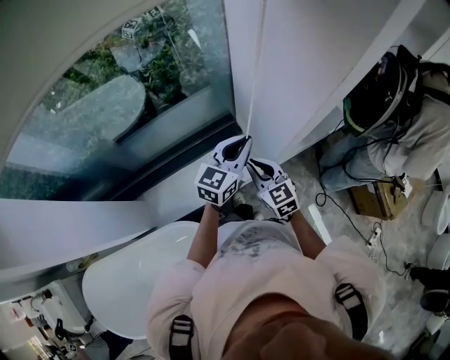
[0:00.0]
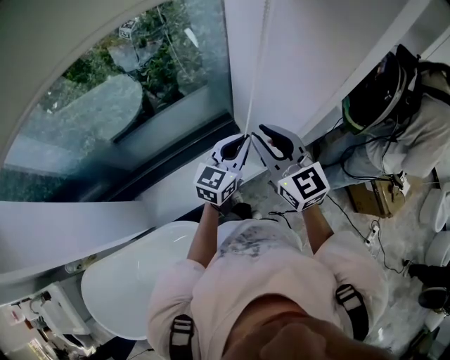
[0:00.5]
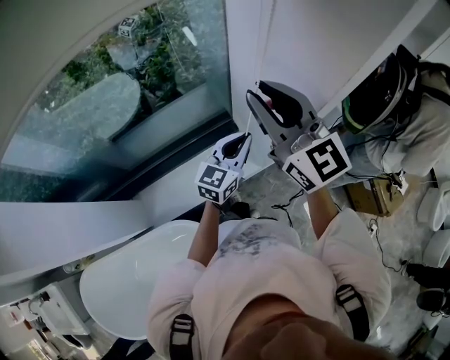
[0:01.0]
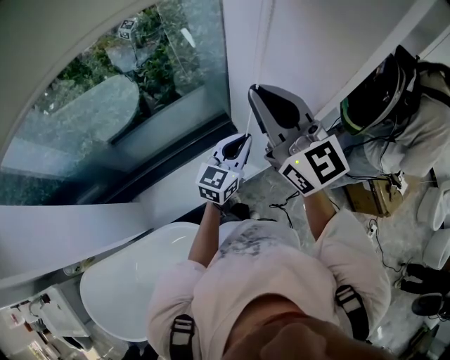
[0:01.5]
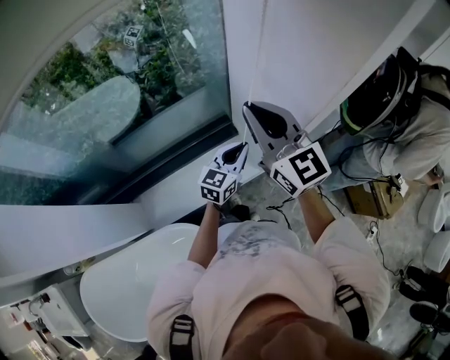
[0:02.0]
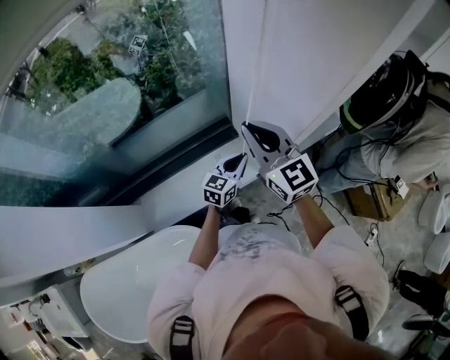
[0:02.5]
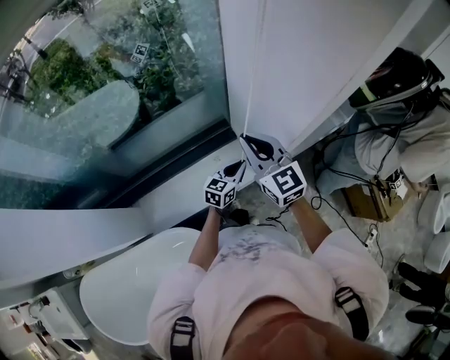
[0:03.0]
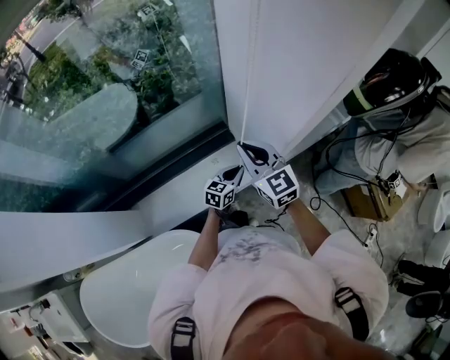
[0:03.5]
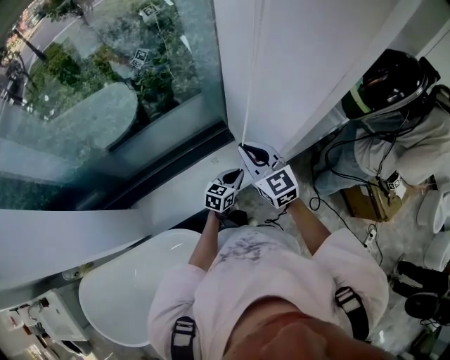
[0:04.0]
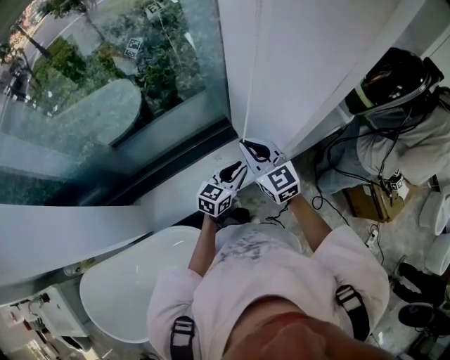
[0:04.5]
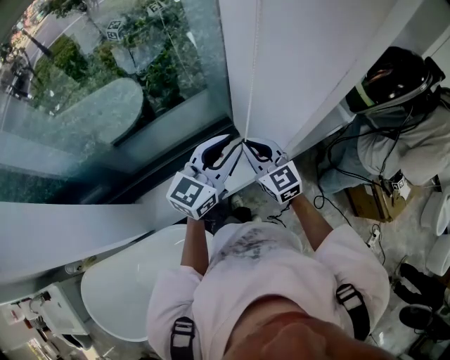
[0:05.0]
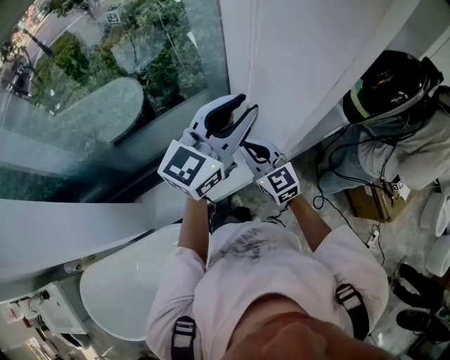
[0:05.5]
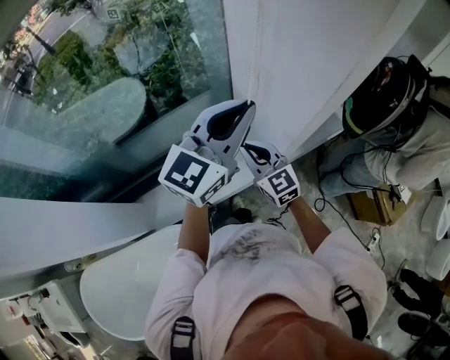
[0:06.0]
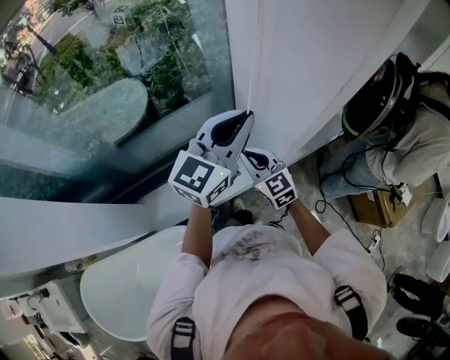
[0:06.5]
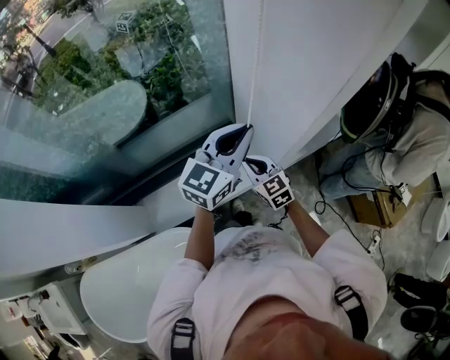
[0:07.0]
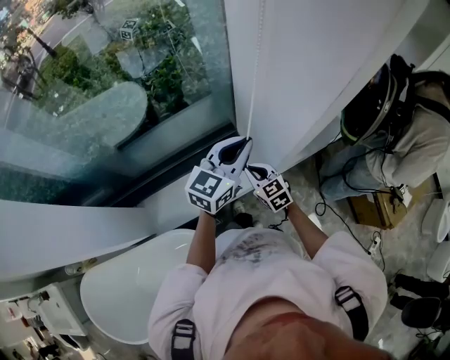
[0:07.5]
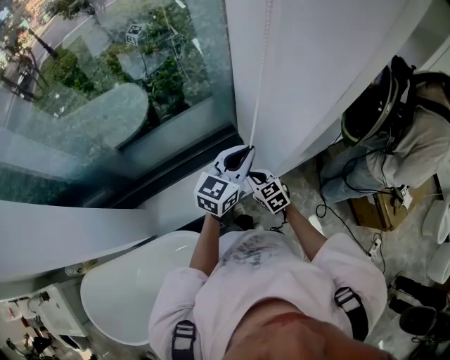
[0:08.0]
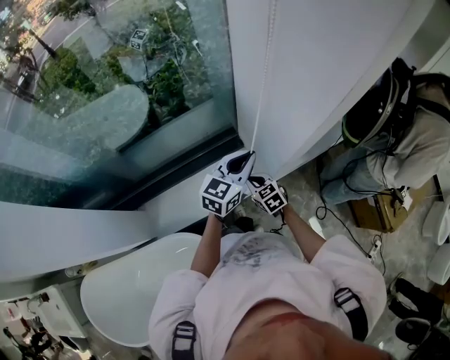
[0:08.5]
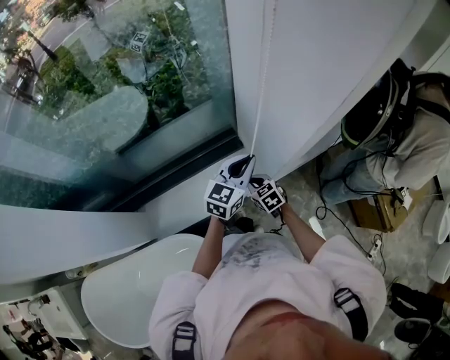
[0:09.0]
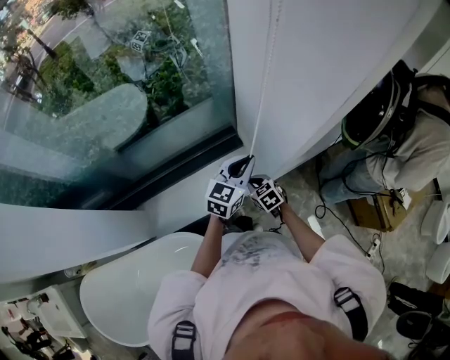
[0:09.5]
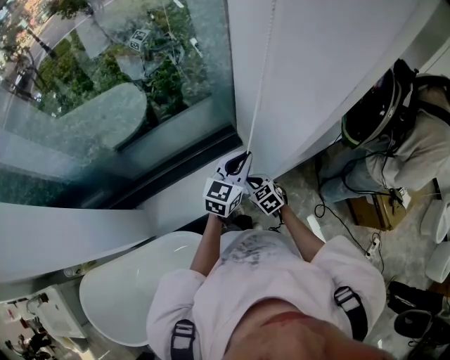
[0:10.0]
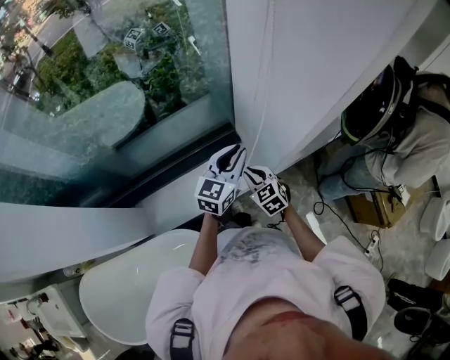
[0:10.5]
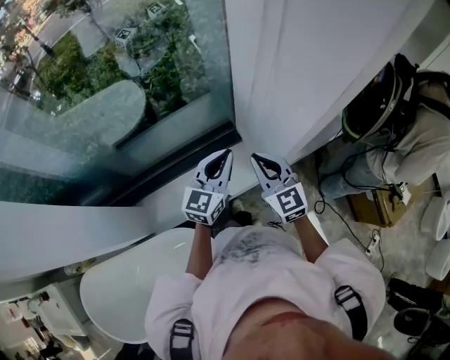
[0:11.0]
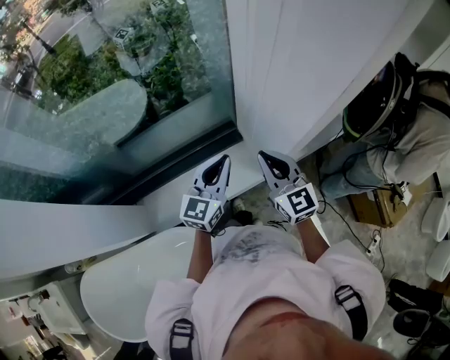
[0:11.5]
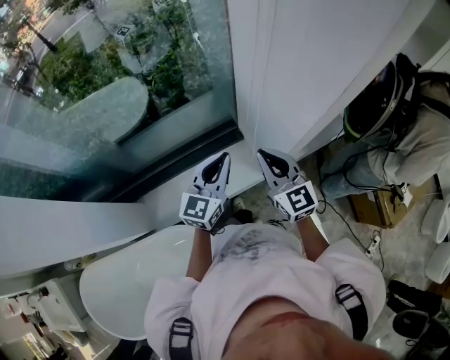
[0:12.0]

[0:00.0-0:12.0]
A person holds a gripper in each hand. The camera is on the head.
0:00.0 to 0:02.0: The right gripper is displaced upward by about 25 cm, and rotates about 30 degrees; the left gripper shifts some 5 cm downward.
0:02.0 to 0:04.0: Both grippers move downward, about 15 cm.
0:04.0 to 0:06.0: The left gripper heads upward, covering about 40 cm, swivels roughly 40 degrees, and opens, then closes again.
0:06.0 to 0:08.0: The grippers both shift downward by approximately 20 cm. The right gripper changes its angle by roughly 20 degrees.
0:08.0 to 0:10.0: The right gripper changes place by roughly 5 cm, while the left gripper moves downward, approximately 5 cm.
0:10.0 to 0:12.0: The right gripper heads upward, covering approximately 25 cm, and points its fingers roughly 40 degrees further upward, while the left gripper moves to the left and upward, about 10 cm.

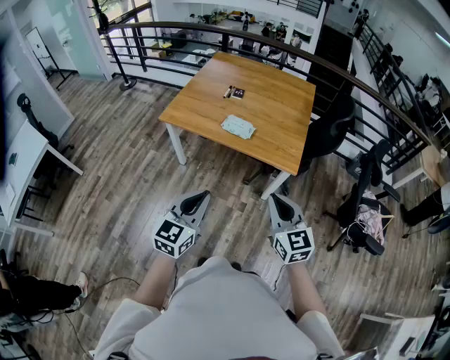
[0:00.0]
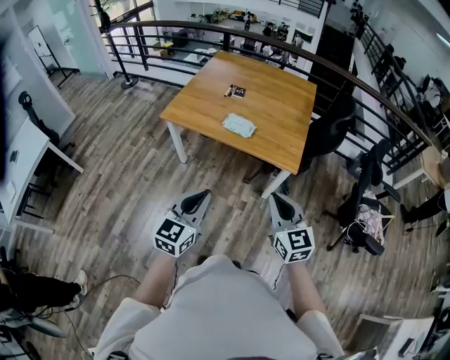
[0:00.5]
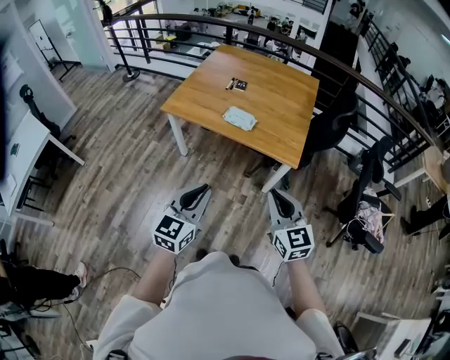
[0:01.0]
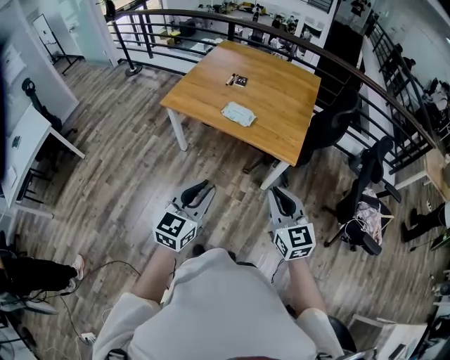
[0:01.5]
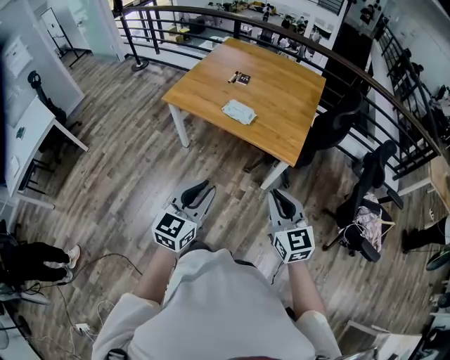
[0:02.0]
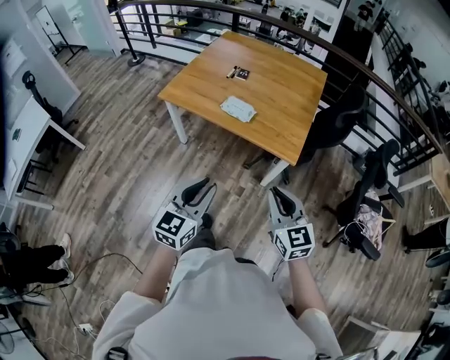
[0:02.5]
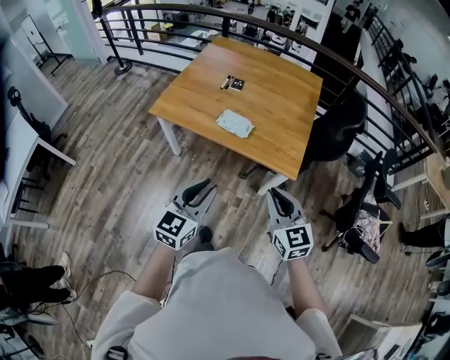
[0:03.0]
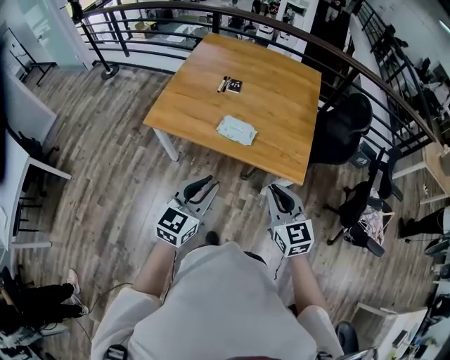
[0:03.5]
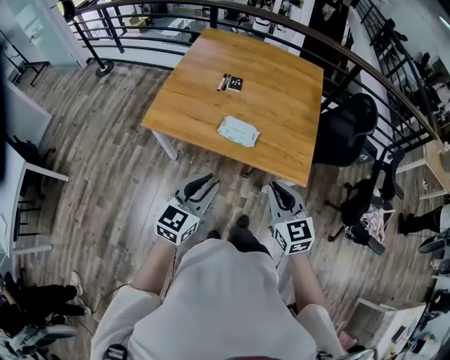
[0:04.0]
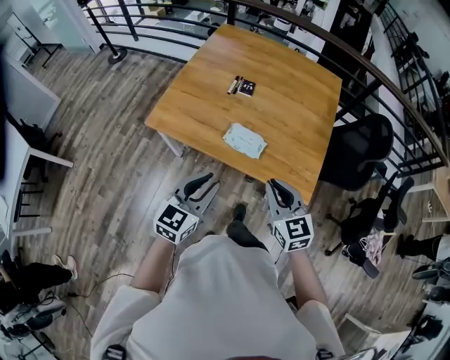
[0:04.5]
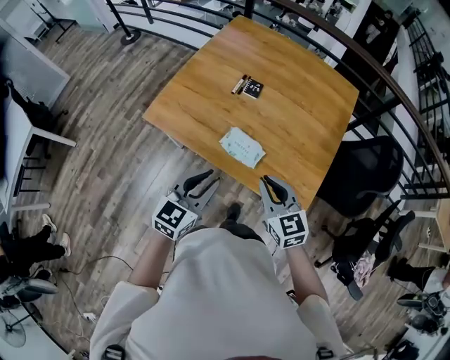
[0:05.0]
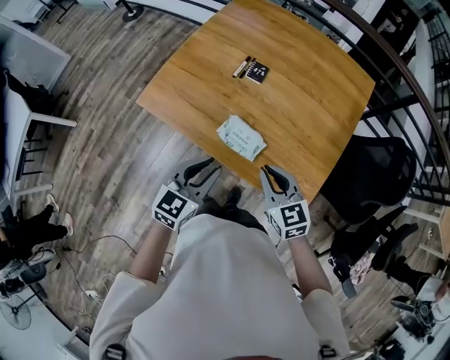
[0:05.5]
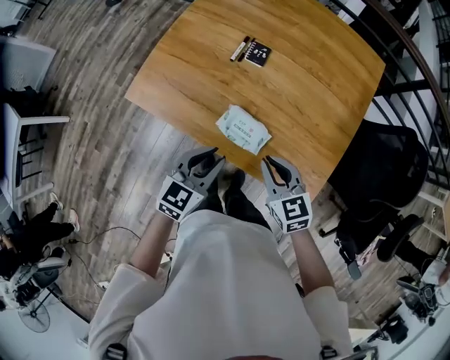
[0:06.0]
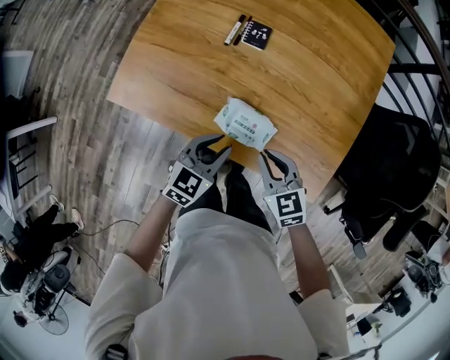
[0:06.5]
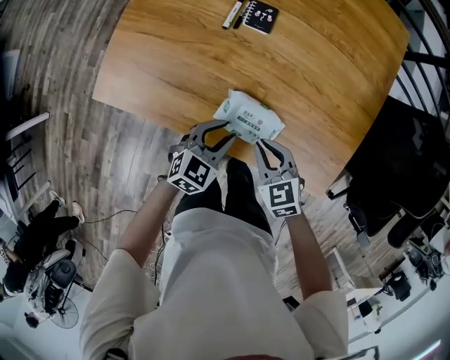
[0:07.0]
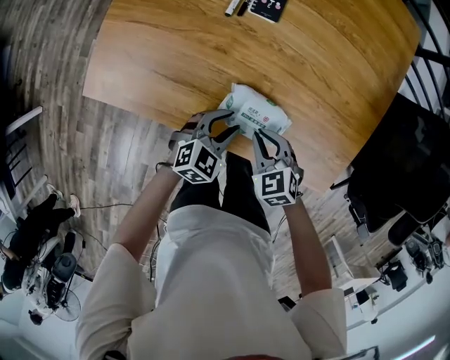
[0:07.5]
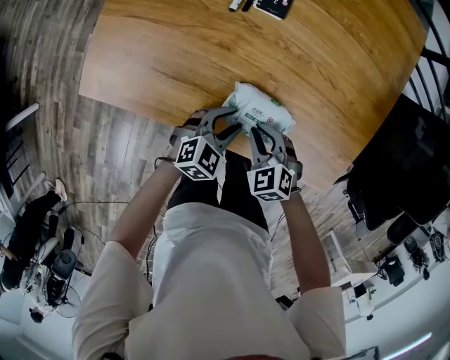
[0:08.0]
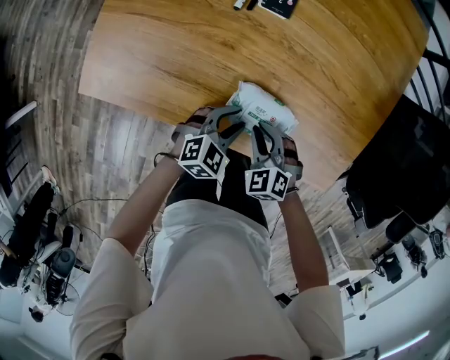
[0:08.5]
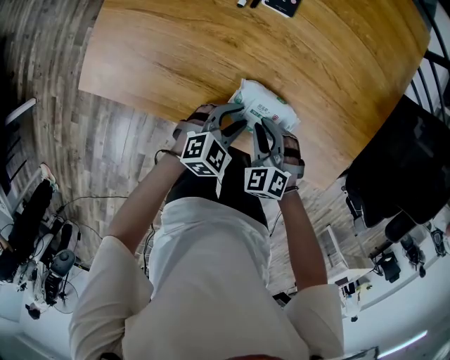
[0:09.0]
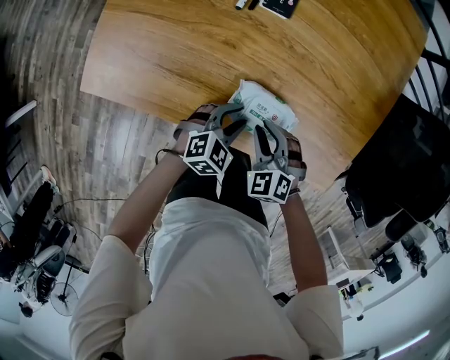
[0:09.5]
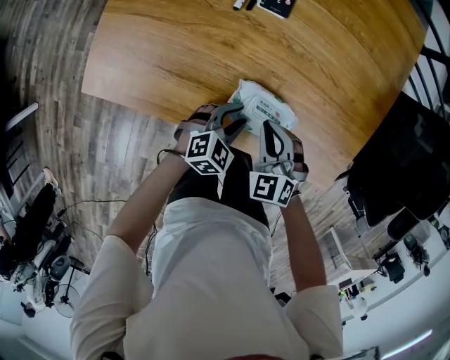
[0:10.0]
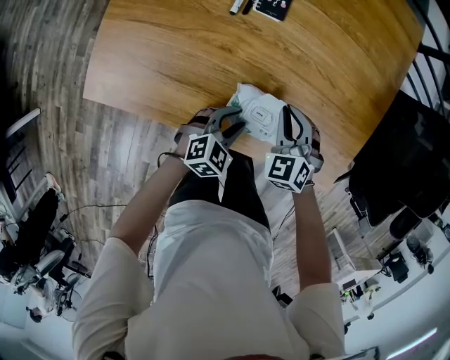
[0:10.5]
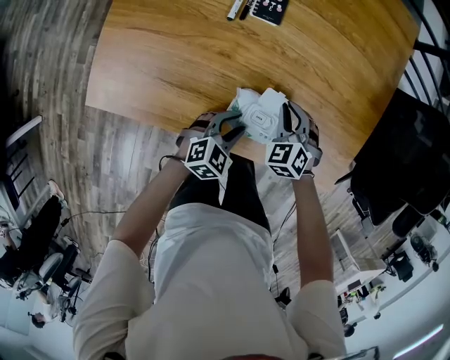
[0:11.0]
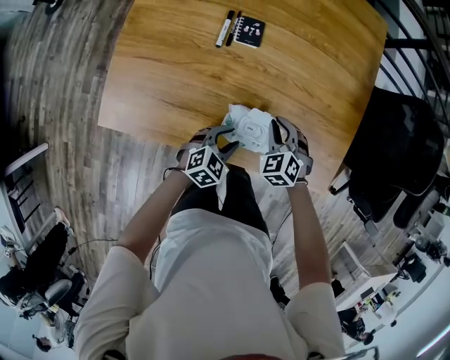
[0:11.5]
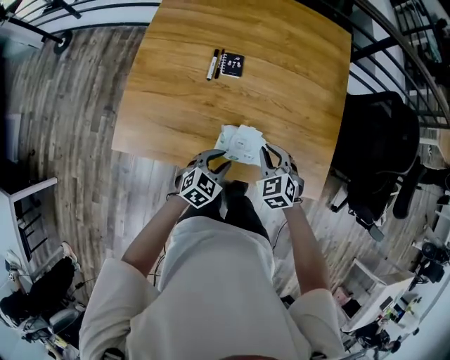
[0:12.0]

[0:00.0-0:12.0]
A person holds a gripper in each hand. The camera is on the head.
0:00.0 to 0:02.0: Both grippers travel together to the right, some 5 cm.
0:02.0 to 0:04.0: Both grippers move forward and to the left, roughly 30 cm.
0:04.0 to 0:06.0: Both grippers travel together forward and downward, approximately 30 cm. The right gripper rotates some 30 degrees.
0:06.0 to 0:08.0: Both grippers move downward, approximately 25 cm. The right gripper swivels roughly 30 degrees; the left gripper rotates about 30 degrees.
0:08.0 to 0:10.0: The right gripper changes place by roughly 5 cm.
0:10.0 to 0:12.0: The grippers both shift upward by approximately 10 cm.

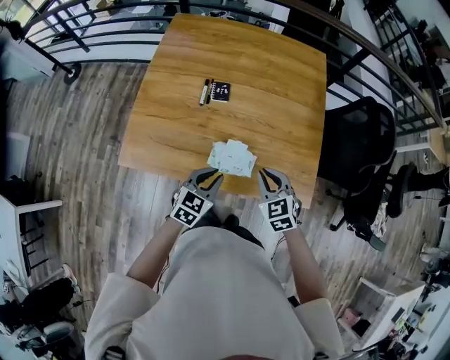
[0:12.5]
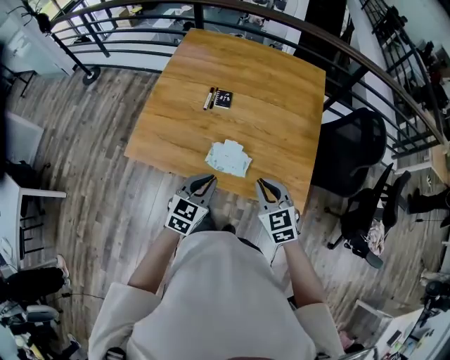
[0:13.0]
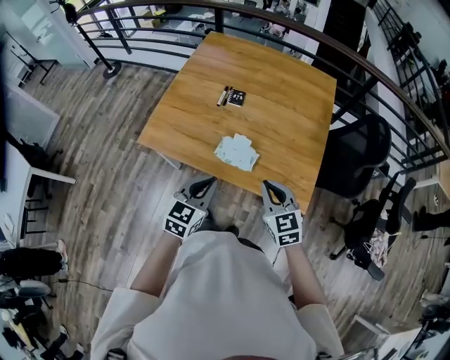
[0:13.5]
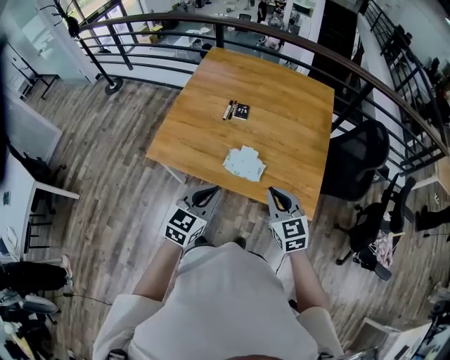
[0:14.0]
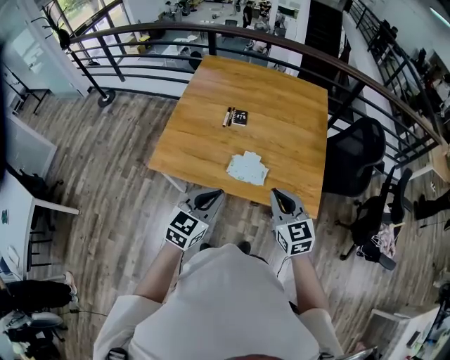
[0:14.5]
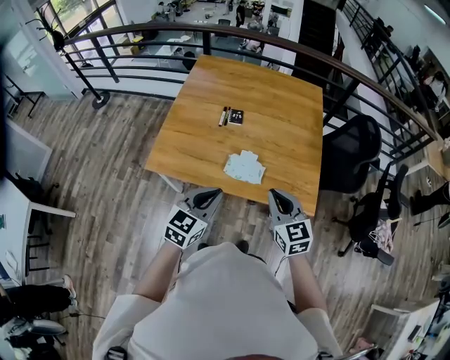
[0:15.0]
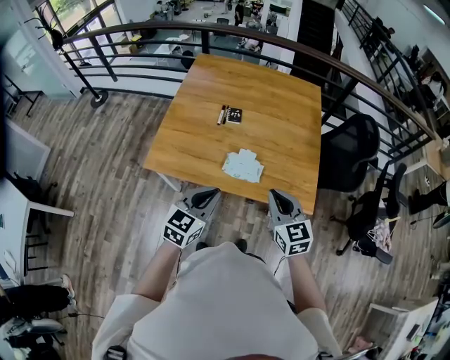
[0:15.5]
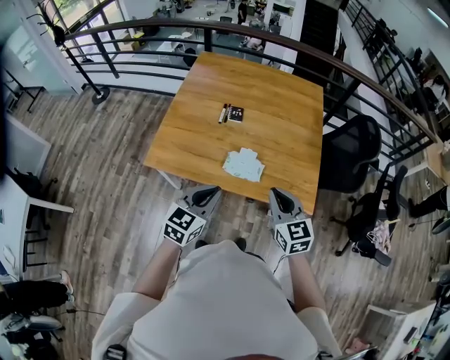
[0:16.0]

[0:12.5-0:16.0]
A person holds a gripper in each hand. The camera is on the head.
0:12.5 to 0:14.5: The left gripper goes roughly 25 cm upward and backward, while the right gripper travels backward and upward by roughly 20 cm, and changes its angle by roughly 20 degrees.
0:14.5 to 0:16.0: Both grippers stay put.
